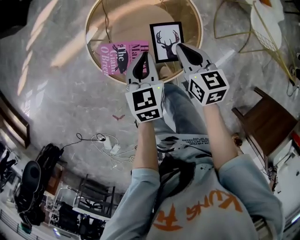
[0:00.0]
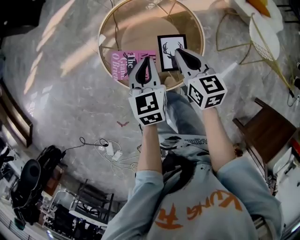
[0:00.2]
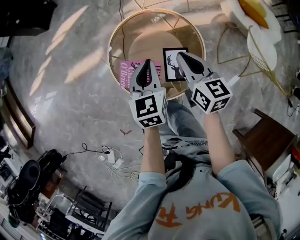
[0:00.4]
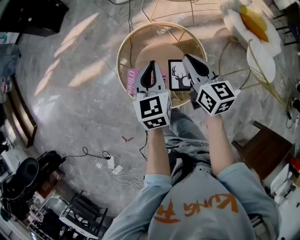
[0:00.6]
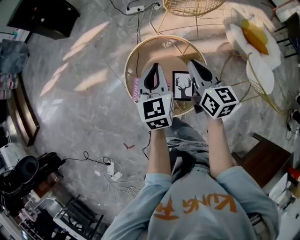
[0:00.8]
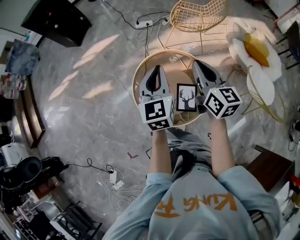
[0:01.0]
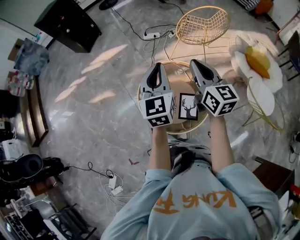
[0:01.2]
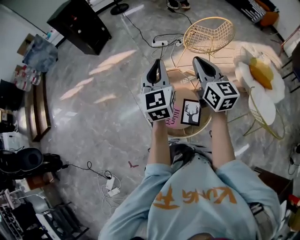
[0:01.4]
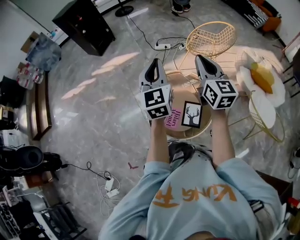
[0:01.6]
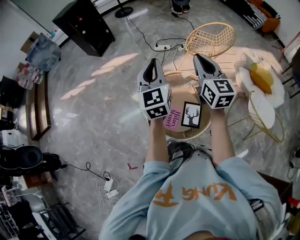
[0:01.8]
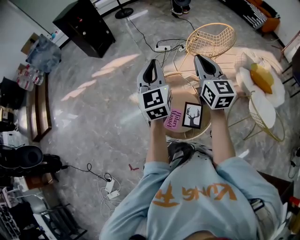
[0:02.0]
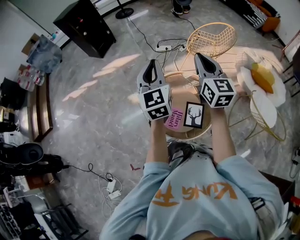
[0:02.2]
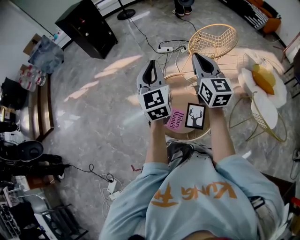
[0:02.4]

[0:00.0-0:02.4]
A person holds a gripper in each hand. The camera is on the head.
0:00.0 to 0:01.2: The grippers both shift upward by approximately 40 cm. The left gripper tips its fingers upward by approximately 30 degrees, while the right gripper rotates roughly 30 degrees.
0:01.2 to 0:02.4: The left gripper is displaced to the left and upward by roughly 10 cm. The right gripper travels upward by about 5 cm.

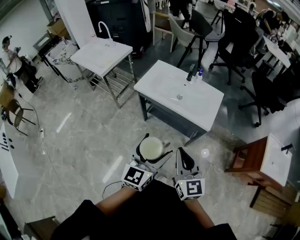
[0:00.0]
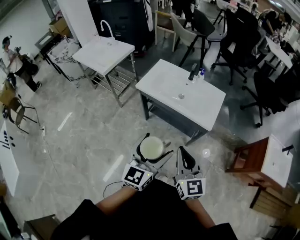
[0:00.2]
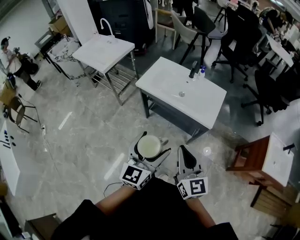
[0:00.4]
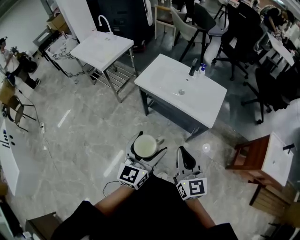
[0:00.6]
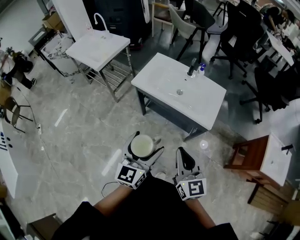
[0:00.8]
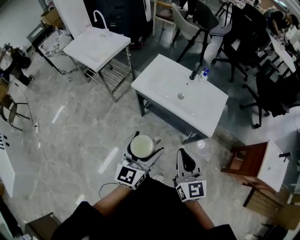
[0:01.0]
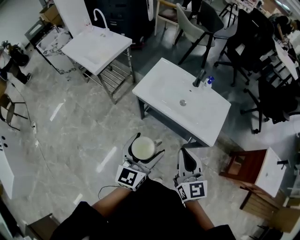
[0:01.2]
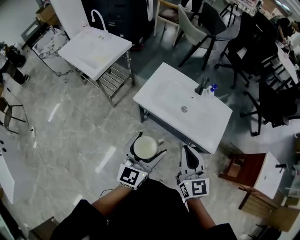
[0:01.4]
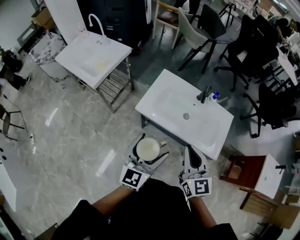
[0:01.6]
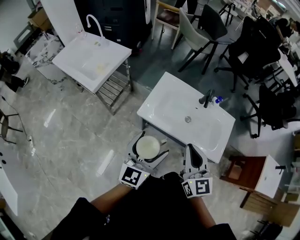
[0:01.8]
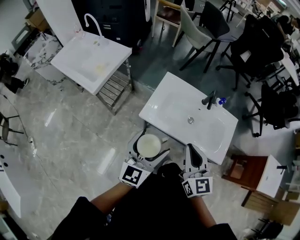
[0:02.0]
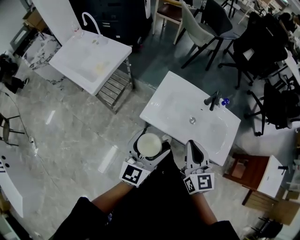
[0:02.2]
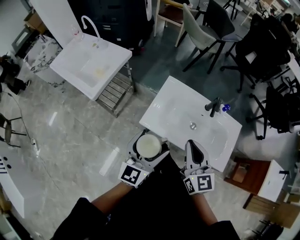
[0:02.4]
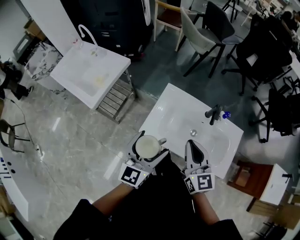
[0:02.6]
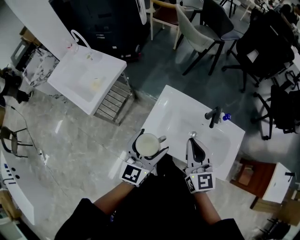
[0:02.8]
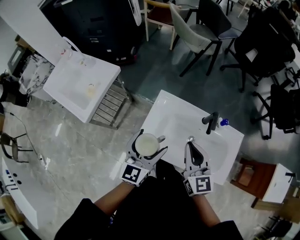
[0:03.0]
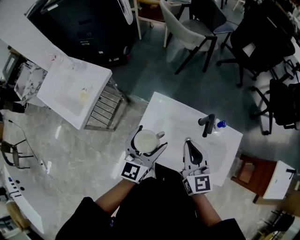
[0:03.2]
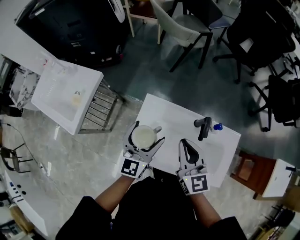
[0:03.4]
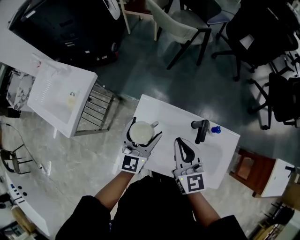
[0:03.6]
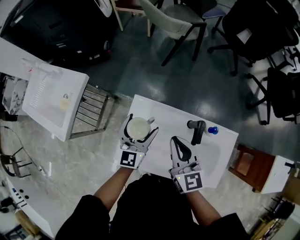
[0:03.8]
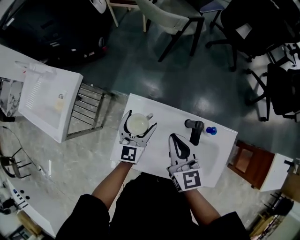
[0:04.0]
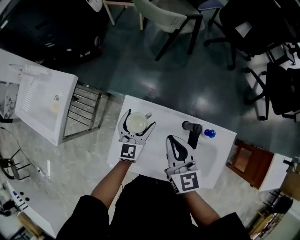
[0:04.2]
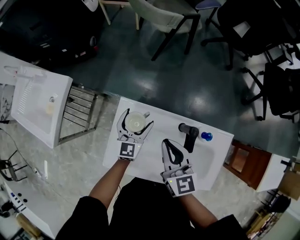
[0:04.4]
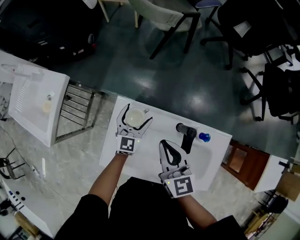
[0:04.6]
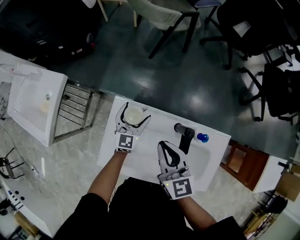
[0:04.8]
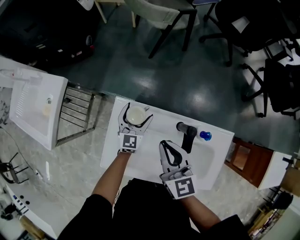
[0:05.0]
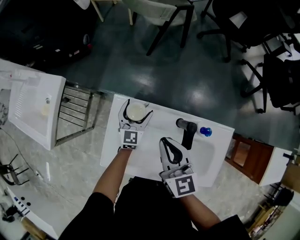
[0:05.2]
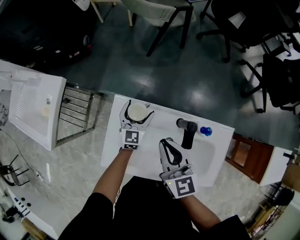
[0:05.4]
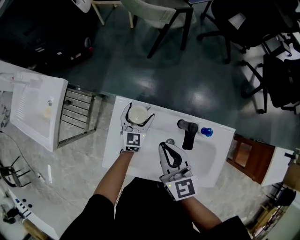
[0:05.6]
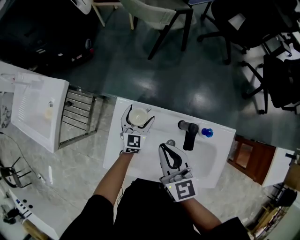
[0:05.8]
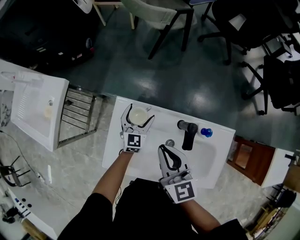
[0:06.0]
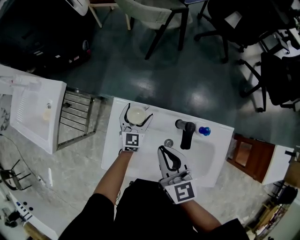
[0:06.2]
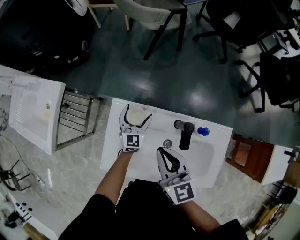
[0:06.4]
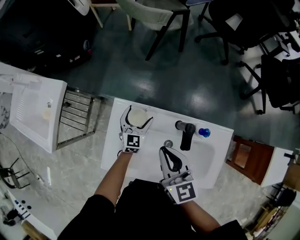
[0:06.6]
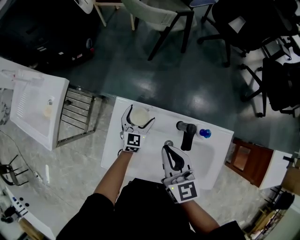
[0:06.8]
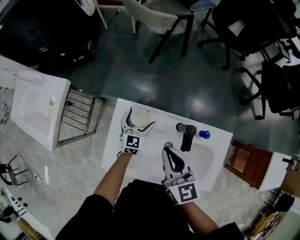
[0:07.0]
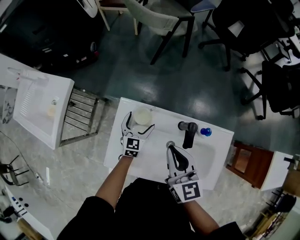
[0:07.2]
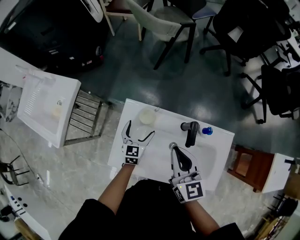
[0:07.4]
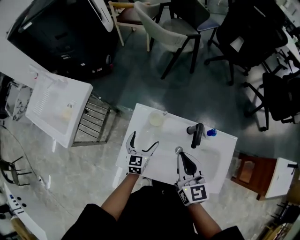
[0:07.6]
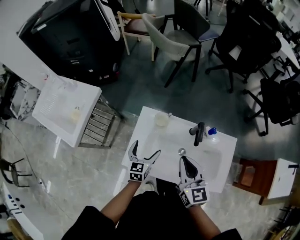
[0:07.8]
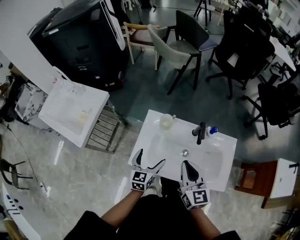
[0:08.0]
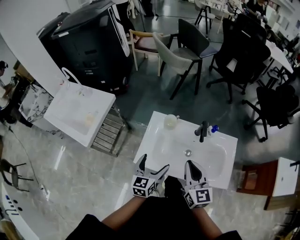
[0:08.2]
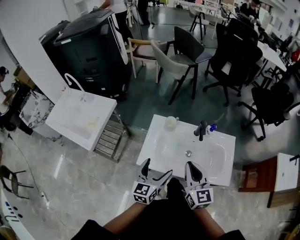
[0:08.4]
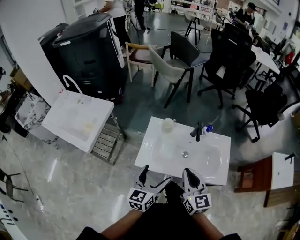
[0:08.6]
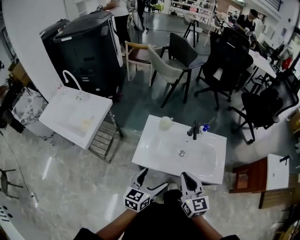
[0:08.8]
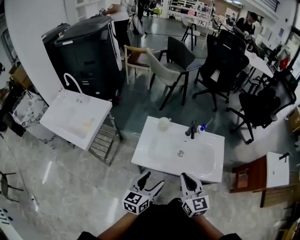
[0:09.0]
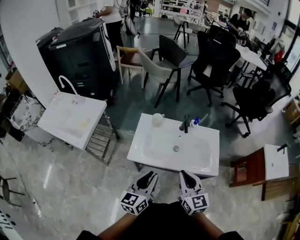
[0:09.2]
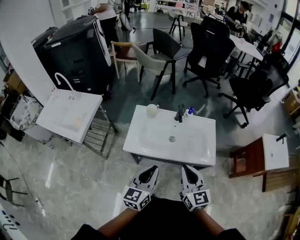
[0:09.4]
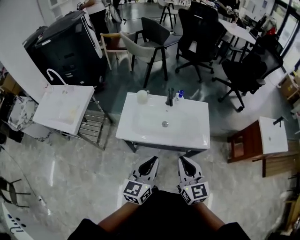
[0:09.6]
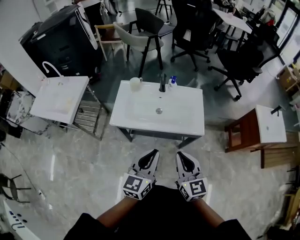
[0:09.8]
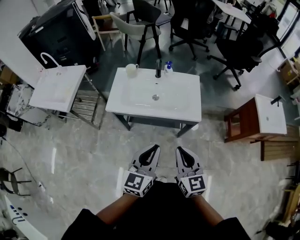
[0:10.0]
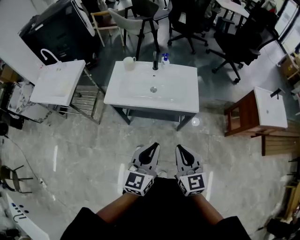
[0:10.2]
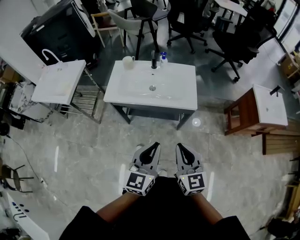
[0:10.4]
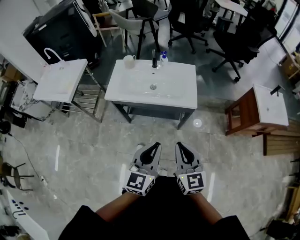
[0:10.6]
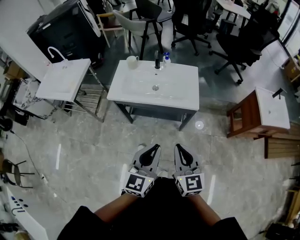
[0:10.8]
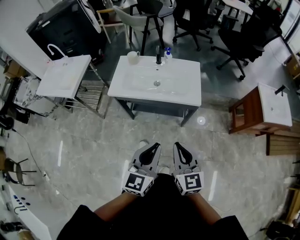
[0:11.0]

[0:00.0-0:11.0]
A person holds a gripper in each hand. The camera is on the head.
0:00.0 to 0:01.6: The left gripper heads forward and to the left, covering roughly 30 cm, while the right gripper is displaced forward by some 30 cm.
0:01.6 to 0:03.2: The two grippers go roughly 35 cm forward.
0:03.2 to 0:04.8: The left gripper heads downward, forward and to the right, covering about 35 cm, while the right gripper heads forward and downward, covering approximately 15 cm.
0:04.8 to 0:06.2: The grippers move only a little.
0:06.2 to 0:07.8: The left gripper heads backward, upward and to the left, covering about 20 cm, while the right gripper moves backward and upward, about 15 cm.
0:07.8 to 0:09.4: The left gripper goes approximately 40 cm backward and upward, changes its angle by about 20 degrees, and closes up. The right gripper goes approximately 30 cm backward.
0:09.4 to 0:11.0: The two grippers go approximately 30 cm backward and to the right.

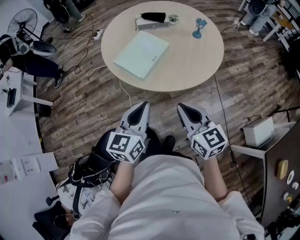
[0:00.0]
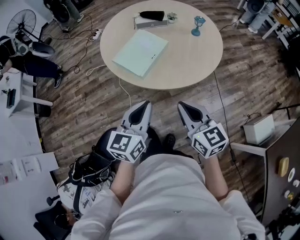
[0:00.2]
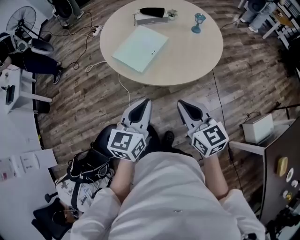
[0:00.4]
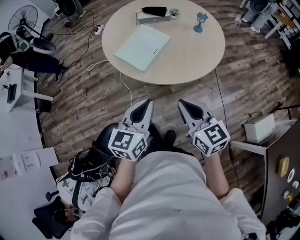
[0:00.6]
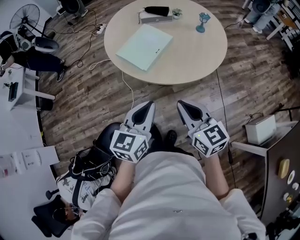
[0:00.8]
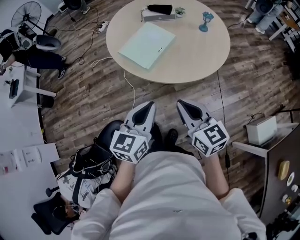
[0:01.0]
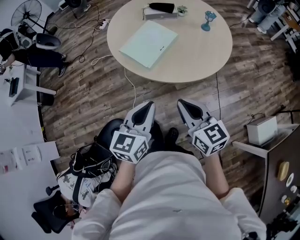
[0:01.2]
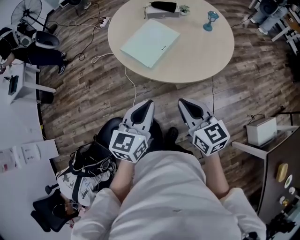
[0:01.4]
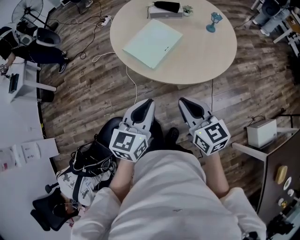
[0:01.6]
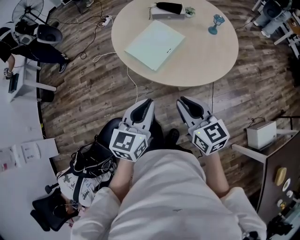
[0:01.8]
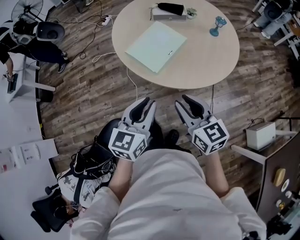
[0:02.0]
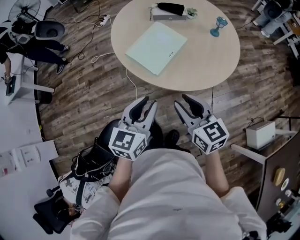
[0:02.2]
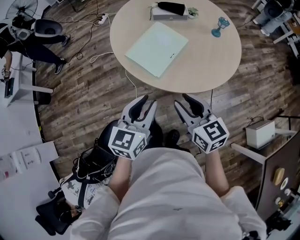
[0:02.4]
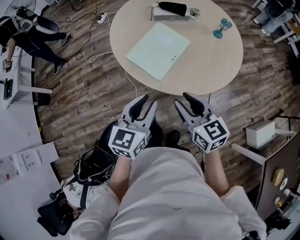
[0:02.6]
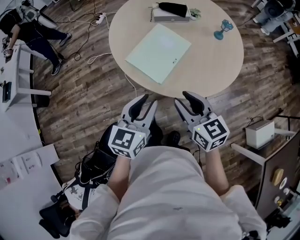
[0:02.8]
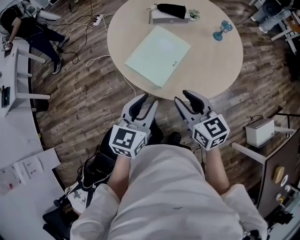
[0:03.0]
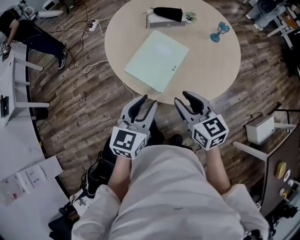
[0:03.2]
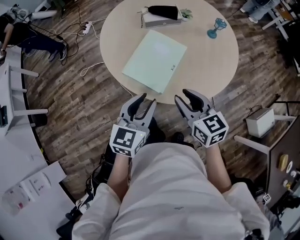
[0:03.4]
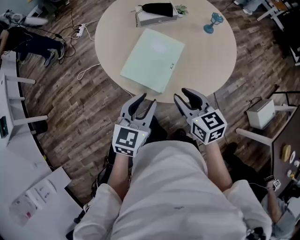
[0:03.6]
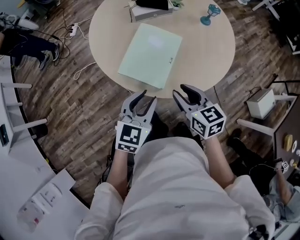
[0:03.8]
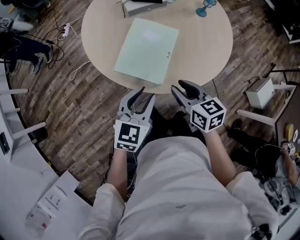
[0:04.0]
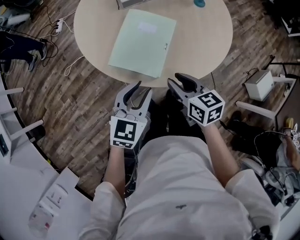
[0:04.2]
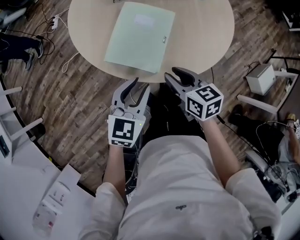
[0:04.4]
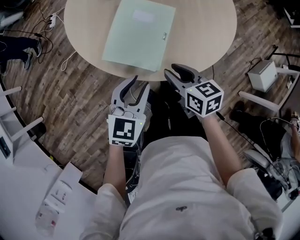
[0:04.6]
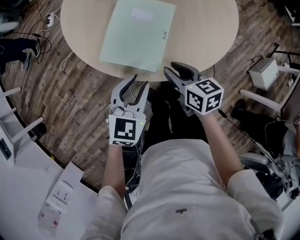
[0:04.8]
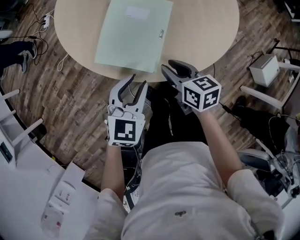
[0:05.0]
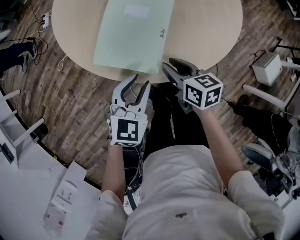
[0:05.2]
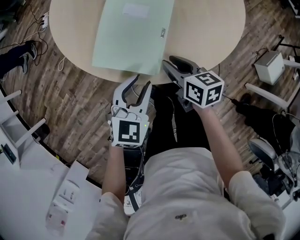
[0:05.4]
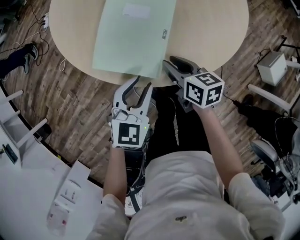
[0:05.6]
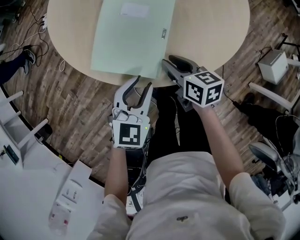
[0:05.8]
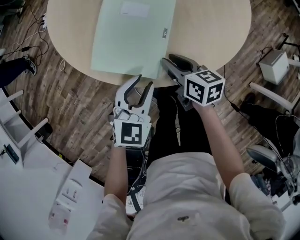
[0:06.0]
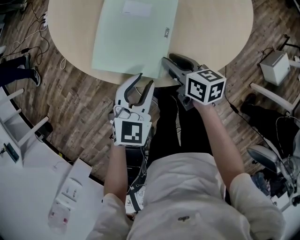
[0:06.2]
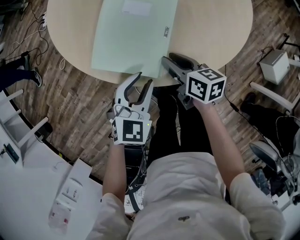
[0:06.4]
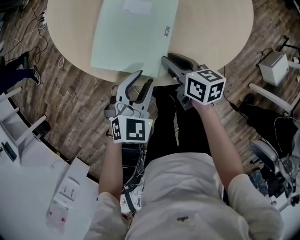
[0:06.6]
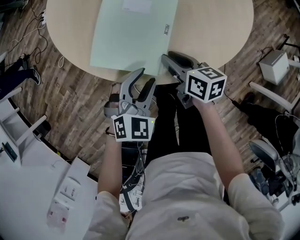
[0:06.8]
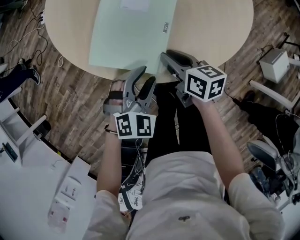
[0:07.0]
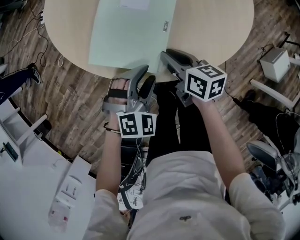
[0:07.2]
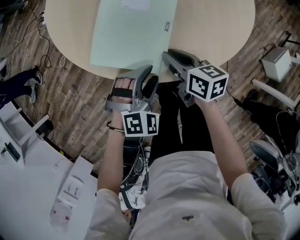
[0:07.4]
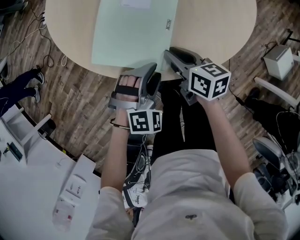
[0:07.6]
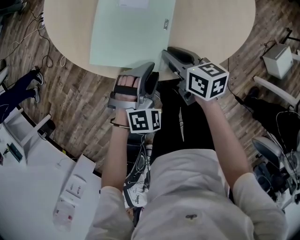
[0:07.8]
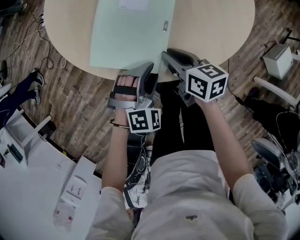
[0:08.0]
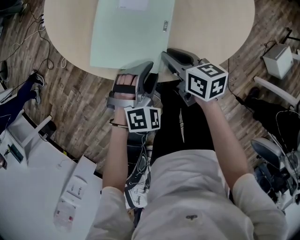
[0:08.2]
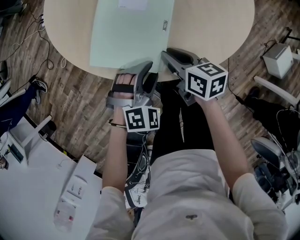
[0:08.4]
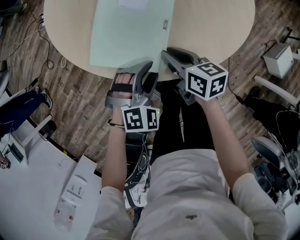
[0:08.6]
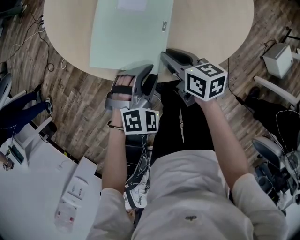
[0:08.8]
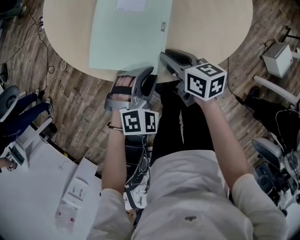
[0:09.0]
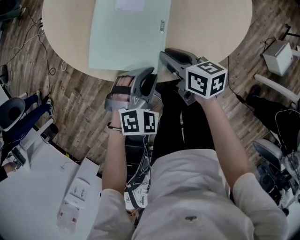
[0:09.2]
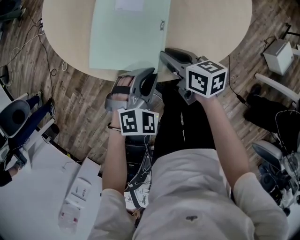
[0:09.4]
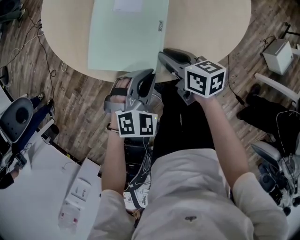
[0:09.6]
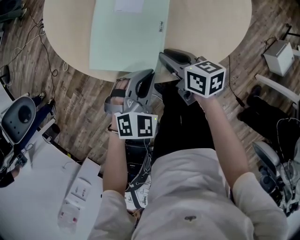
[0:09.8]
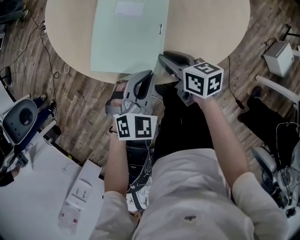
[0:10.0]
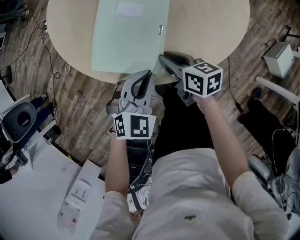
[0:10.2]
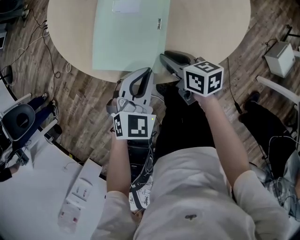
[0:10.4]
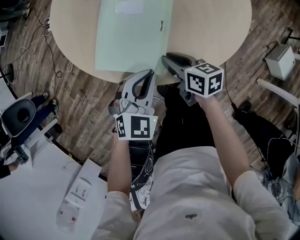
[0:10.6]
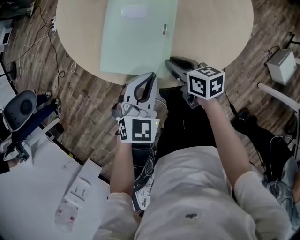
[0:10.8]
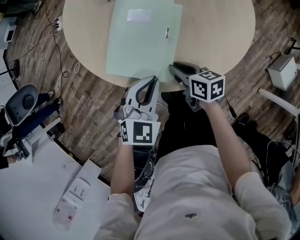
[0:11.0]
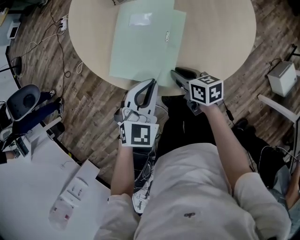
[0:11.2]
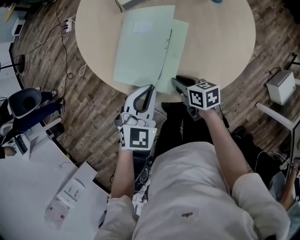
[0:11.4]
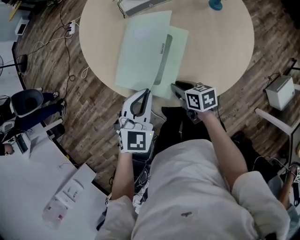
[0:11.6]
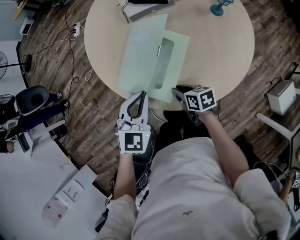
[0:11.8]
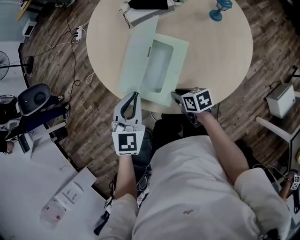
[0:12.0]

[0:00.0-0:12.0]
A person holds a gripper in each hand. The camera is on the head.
0:00.0 to 0:01.6: There are only small adjustments of the grippers.
0:01.6 to 0:03.0: The two grippers go approximately 15 cm forward. The right gripper opens up; the left gripper opens its fingers.
0:03.0 to 0:04.4: The grippers both shift downward and forward by approximately 10 cm. The left gripper changes its angle by some 30 degrees. Meanwhile the right gripper changes its angle by some 20 degrees.
0:04.4 to 0:06.0: The right gripper goes approximately 15 cm downward and forward, while the left gripper is displaced downward by about 10 cm.
0:06.0 to 0:07.6: The left gripper goes about 5 cm downward, and twists some 40 degrees clockwise, seen from behind.
0:07.6 to 0:09.0: The grippers stay close to where they were, moving slightly.
0:09.0 to 0:10.4: The left gripper is displaced upward by approximately 5 cm, changes its angle by approximately 30 degrees, and closes up.
0:10.4 to 0:12.0: The right gripper rotates some 20 degrees. The left gripper goes roughly 15 cm upward, to the left and forward, and turns by roughly 30 degrees.
